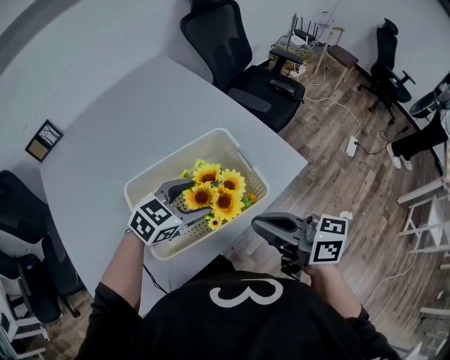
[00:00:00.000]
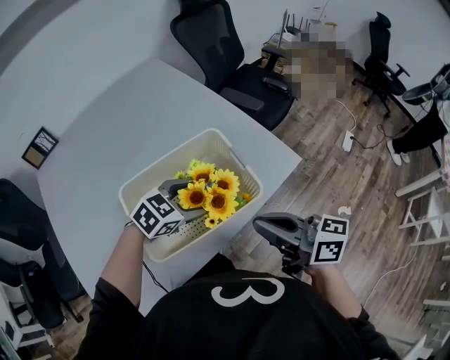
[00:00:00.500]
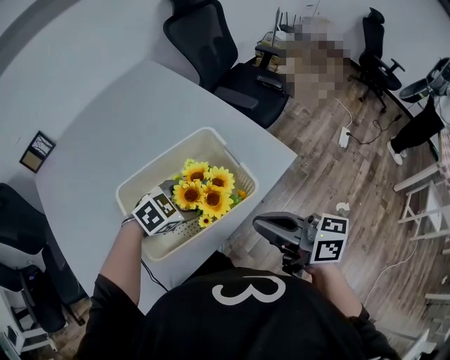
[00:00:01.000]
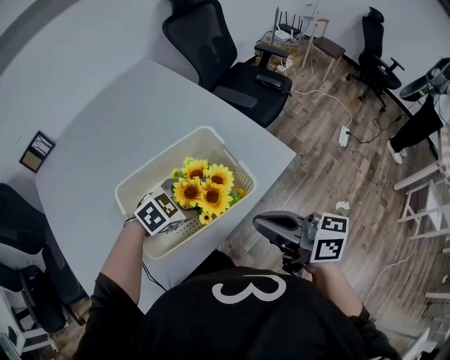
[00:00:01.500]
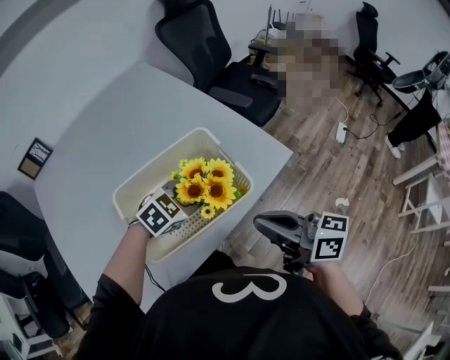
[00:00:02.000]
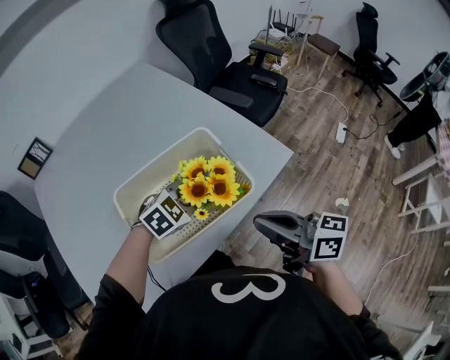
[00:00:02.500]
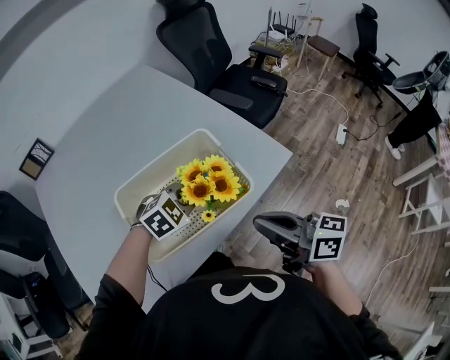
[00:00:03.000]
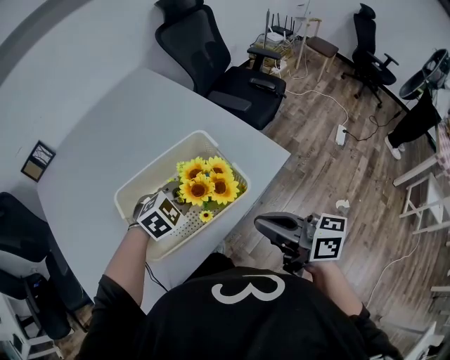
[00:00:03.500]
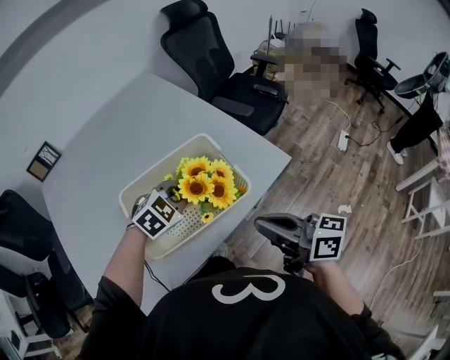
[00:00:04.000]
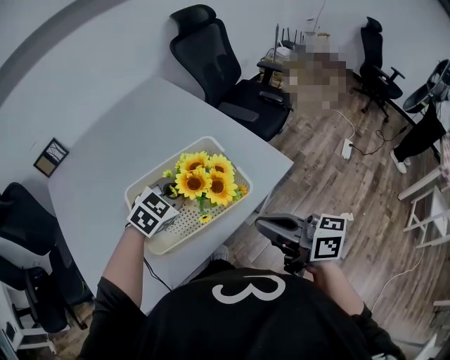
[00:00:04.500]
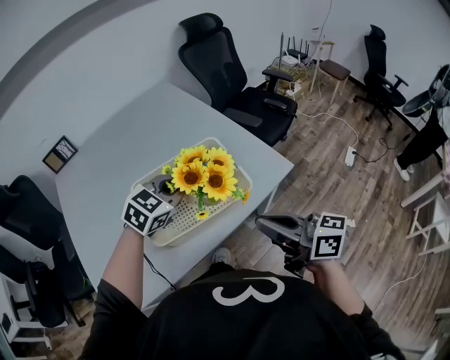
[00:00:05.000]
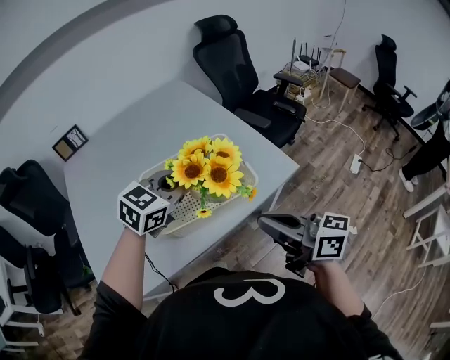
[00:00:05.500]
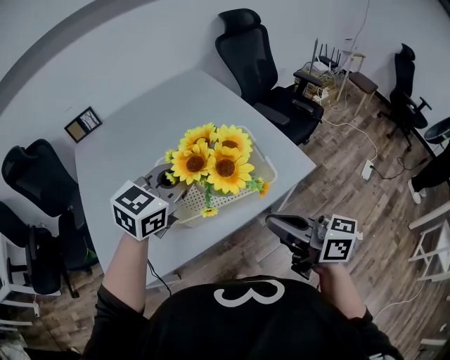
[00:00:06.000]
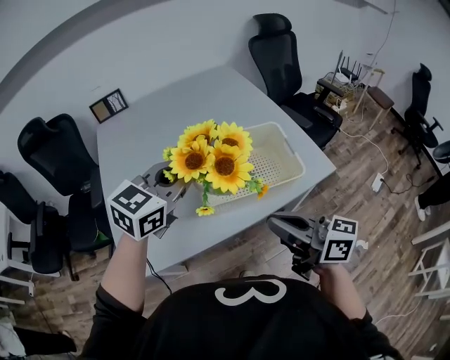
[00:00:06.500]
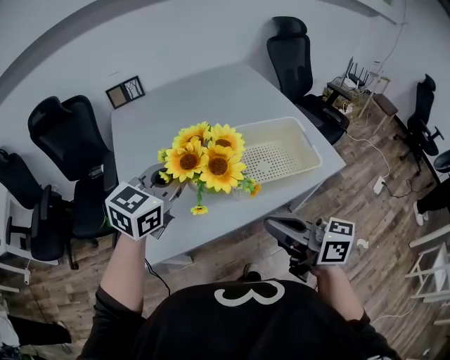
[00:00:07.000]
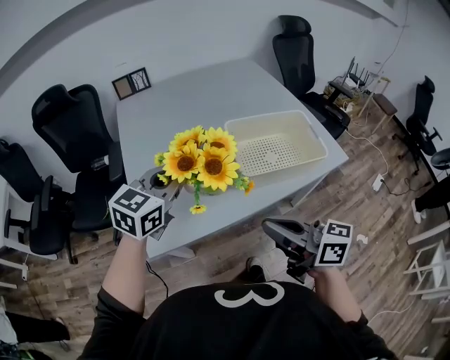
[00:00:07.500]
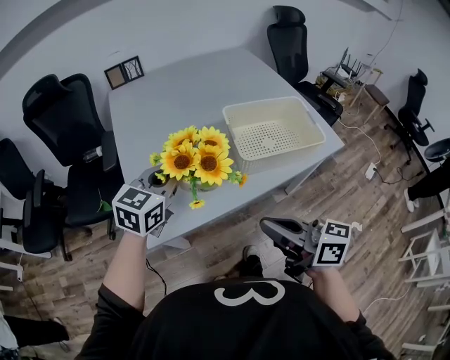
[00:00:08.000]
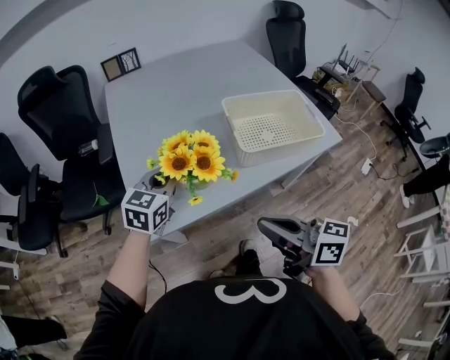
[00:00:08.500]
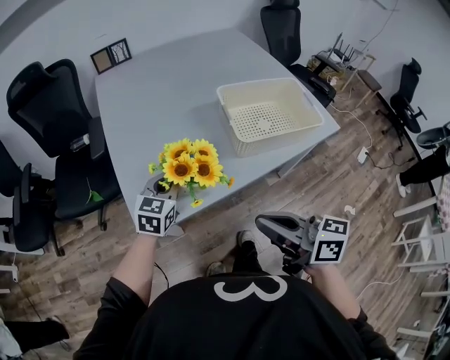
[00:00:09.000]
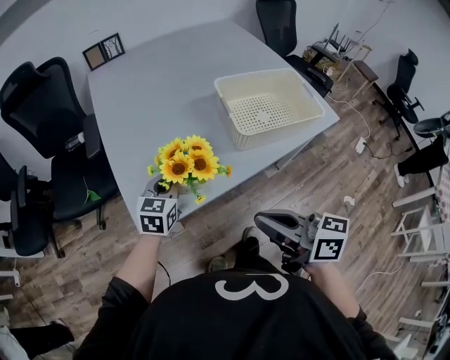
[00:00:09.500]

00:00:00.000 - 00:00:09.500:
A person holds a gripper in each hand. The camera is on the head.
00:00:00.000 - 00:00:02.000: The left gripper shifts by some 5 cm, and closes its fingers.
00:00:02.000 - 00:00:04.000: The left gripper closes up.
00:00:04.000 - 00:00:05.500: The left gripper travels upward and backward by approximately 15 cm, and changes its angle by about 30 degrees. Meanwhile the right gripper ends up roughly 5 cm from where it was.
00:00:05.500 - 00:00:07.500: The two grippers go about 30 cm to the left. The left gripper swivels about 30 degrees.
00:00:07.500 - 00:00:09.500: The left gripper heads downward, covering about 20 cm, while the right gripper travels to the left and downward by some 10 cm.

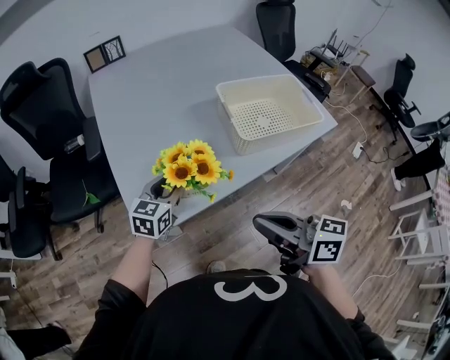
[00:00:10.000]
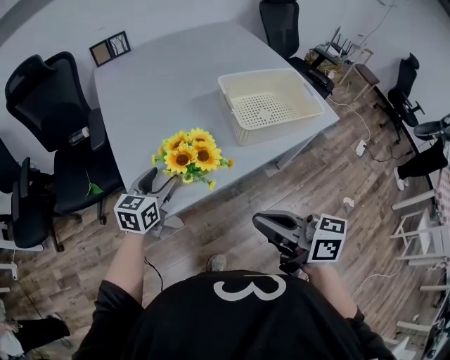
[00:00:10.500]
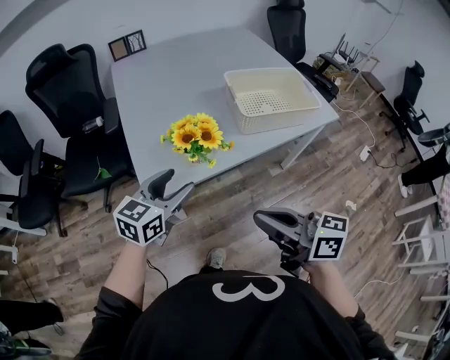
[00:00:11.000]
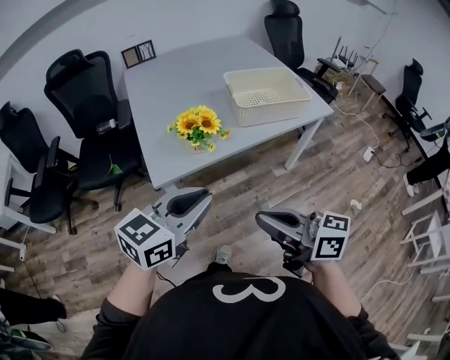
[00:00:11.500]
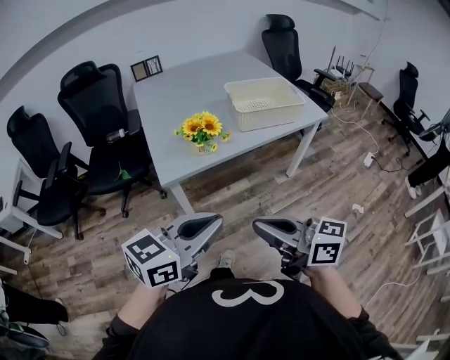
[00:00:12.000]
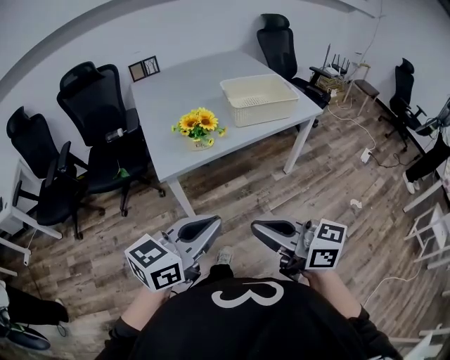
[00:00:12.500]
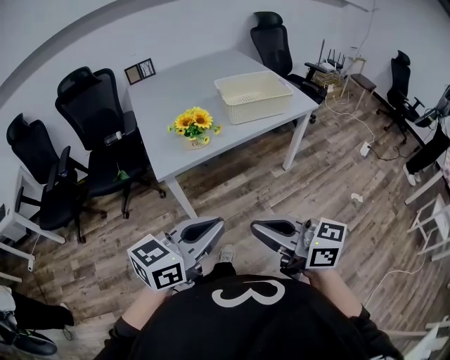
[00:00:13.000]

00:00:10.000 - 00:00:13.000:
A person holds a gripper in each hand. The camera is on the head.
00:00:10.000 - 00:00:11.500: The left gripper goes roughly 35 cm backward and upward, changes its angle by about 20 degrees, and opens and closes again; the right gripper shifts some 20 cm backward.
00:00:11.500 - 00:00:13.000: The two grippers go approximately 15 cm backward.

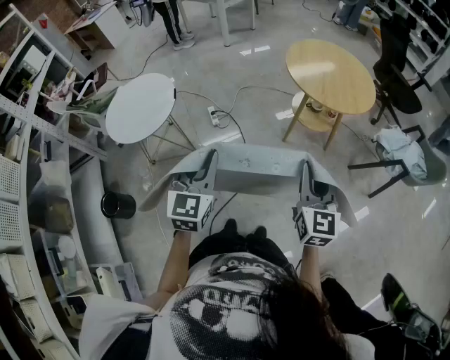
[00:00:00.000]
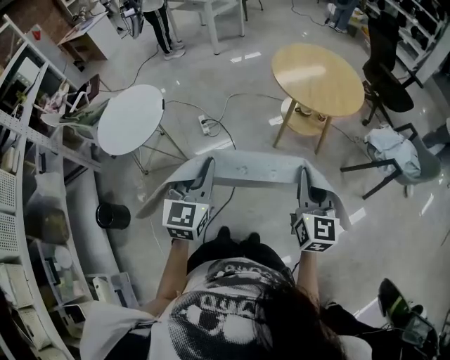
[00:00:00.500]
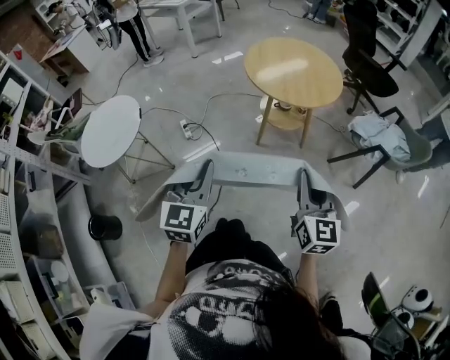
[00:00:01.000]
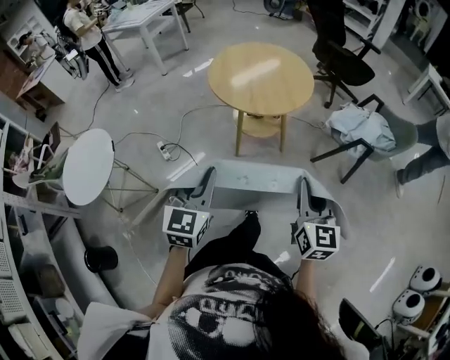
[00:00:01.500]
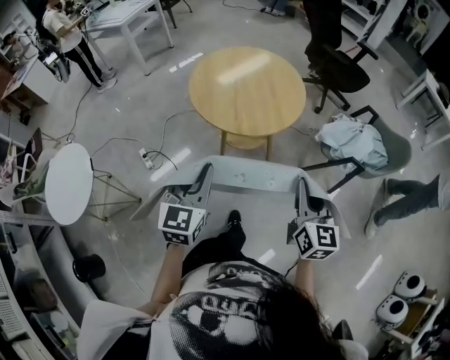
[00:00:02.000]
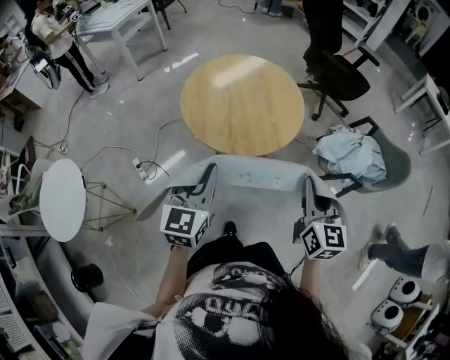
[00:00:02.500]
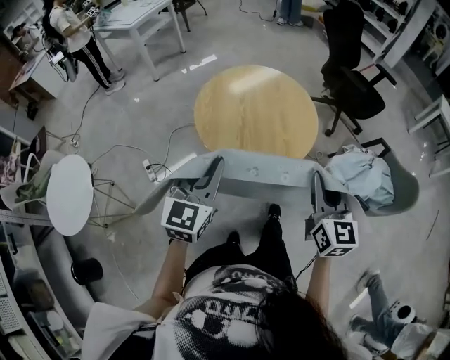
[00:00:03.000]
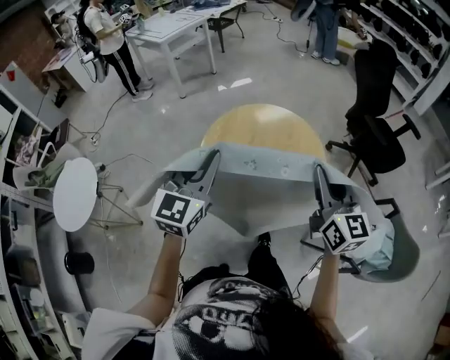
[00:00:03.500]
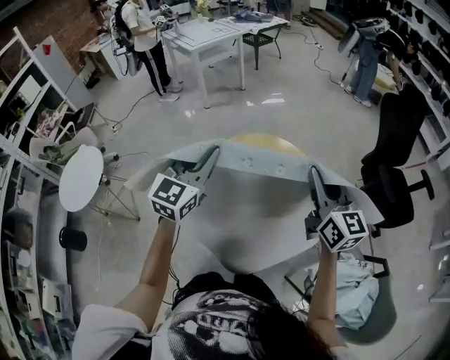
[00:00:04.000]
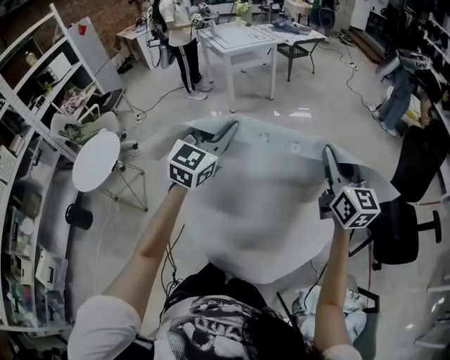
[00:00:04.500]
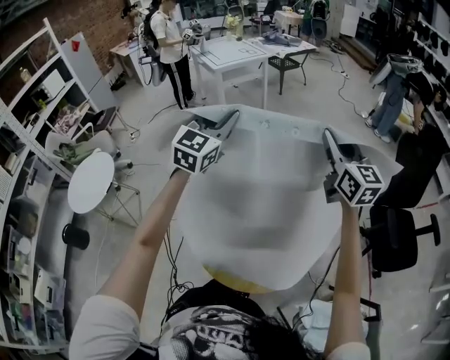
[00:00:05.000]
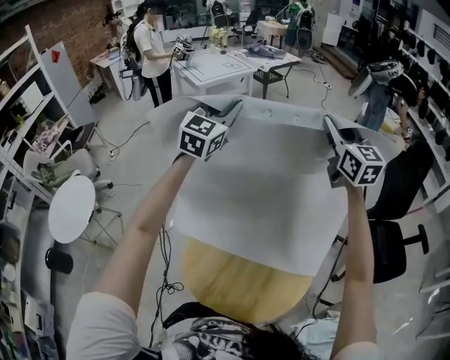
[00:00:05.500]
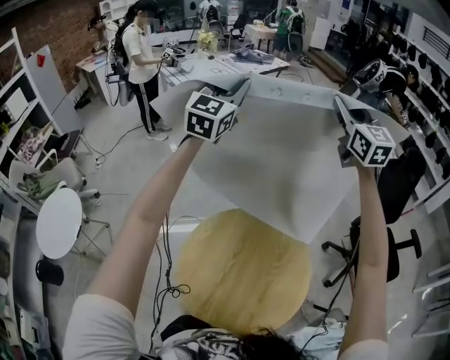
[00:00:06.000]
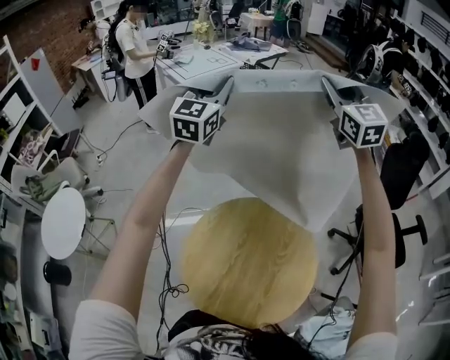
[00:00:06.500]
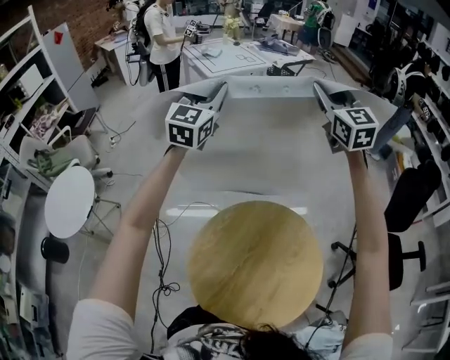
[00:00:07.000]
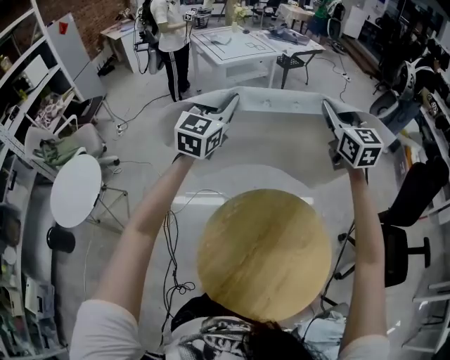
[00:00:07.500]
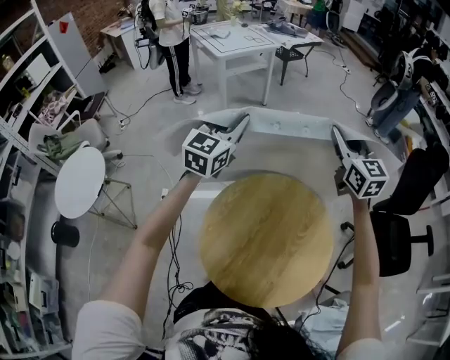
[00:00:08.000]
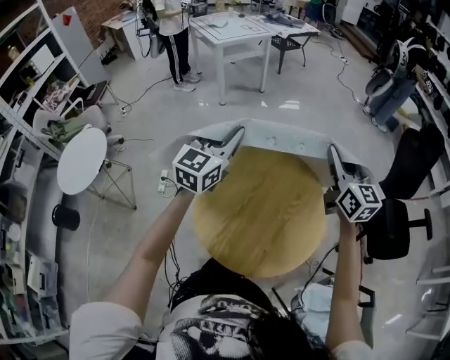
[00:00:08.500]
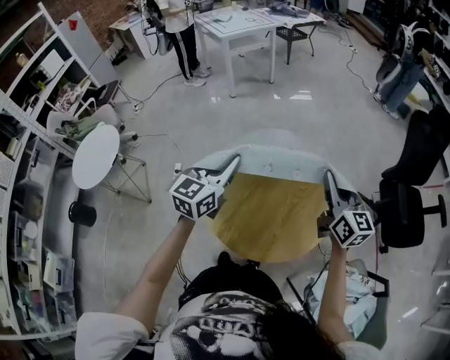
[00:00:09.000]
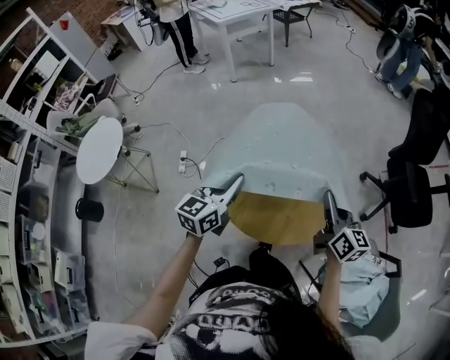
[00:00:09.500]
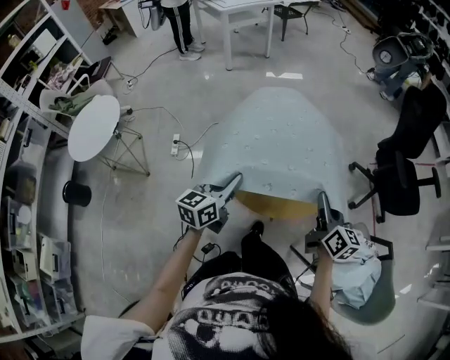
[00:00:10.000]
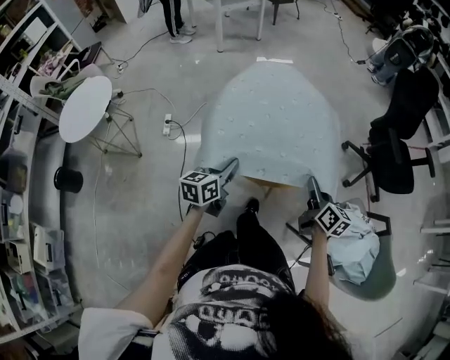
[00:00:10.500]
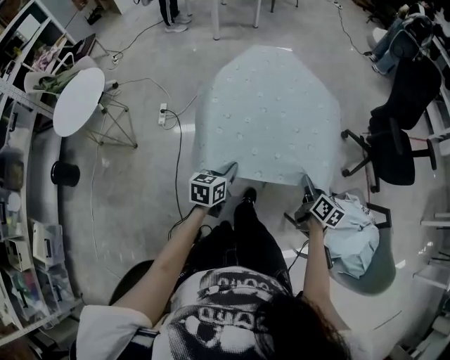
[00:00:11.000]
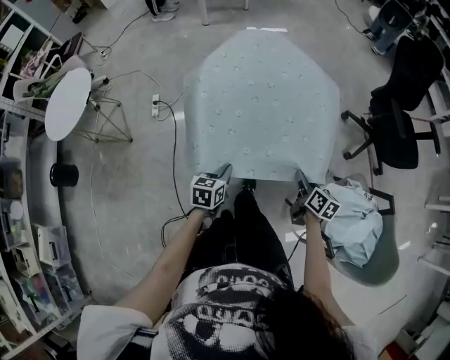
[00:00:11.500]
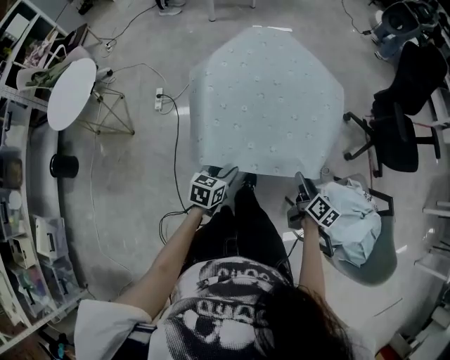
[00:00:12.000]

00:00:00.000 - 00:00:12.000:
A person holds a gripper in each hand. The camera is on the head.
00:00:00.000 - 00:00:02.000: The two grippers go approximately 35 cm to the right and forward. The left gripper rotates roughly 20 degrees.
00:00:02.000 - 00:00:04.000: The two grippers travel together, some 50 cm. The left gripper turns by roughly 20 degrees; the right gripper changes its angle by roughly 40 degrees.
00:00:04.000 - 00:00:06.000: The pair of grippers is taken forward, some 40 cm. The two grippers go roughly 20 cm upward. The right gripper changes its angle by roughly 20 degrees.
00:00:06.000 - 00:00:08.000: The two grippers go some 25 cm downward, backward and to the left.
00:00:08.000 - 00:00:10.000: Both grippers are carried backward, some 50 cm. The grippers both shift downward by roughly 20 cm. The right gripper changes its angle by approximately 40 degrees. Meanwhile the left gripper changes its angle by some 30 degrees.
00:00:10.000 - 00:00:12.000: The grippers both shift downward and backward by about 20 cm. The right gripper swivels approximately 30 degrees, and opens. The left gripper rotates some 30 degrees, and opens.

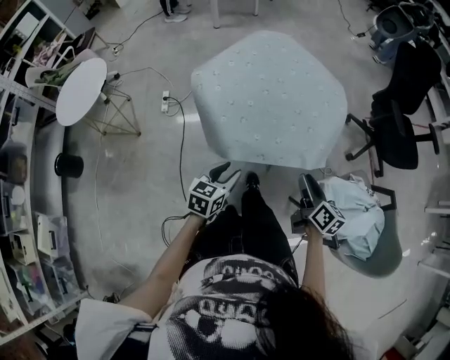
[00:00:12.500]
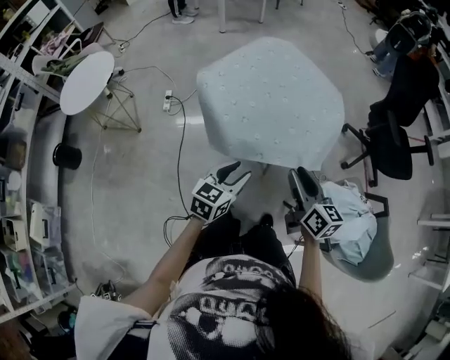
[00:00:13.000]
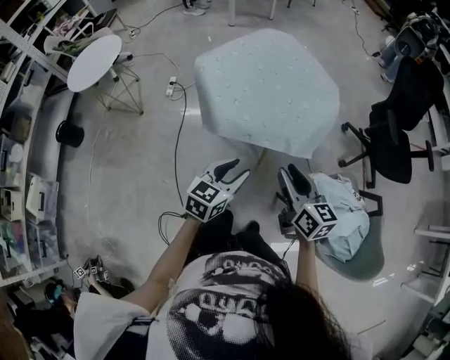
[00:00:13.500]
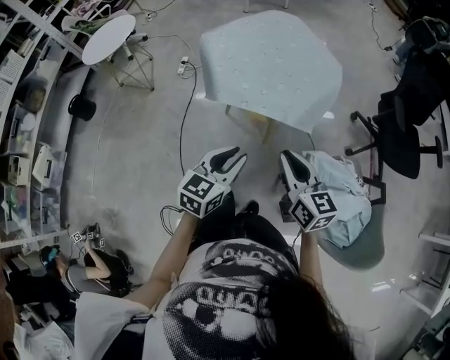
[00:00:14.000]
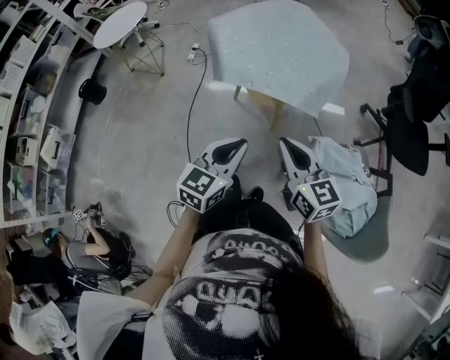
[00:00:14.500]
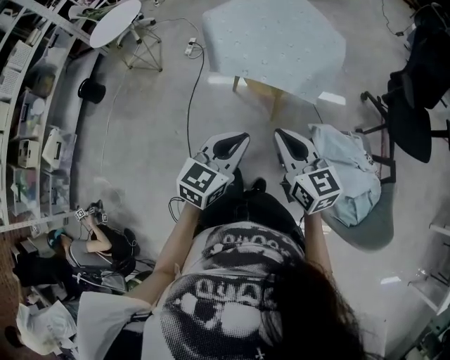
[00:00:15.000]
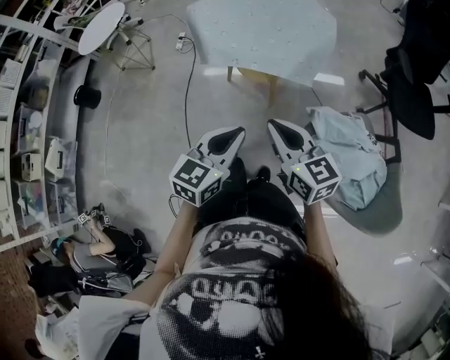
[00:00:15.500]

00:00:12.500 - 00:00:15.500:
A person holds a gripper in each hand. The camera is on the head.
00:00:12.500 - 00:00:14.000: The left gripper travels backward, to the right and upward by about 25 cm; the right gripper travels backward and upward by roughly 20 cm, changes its angle by about 40 degrees, and closes up.
00:00:14.000 - 00:00:15.500: The grippers both shift backward by about 5 cm. The left gripper closes up.
